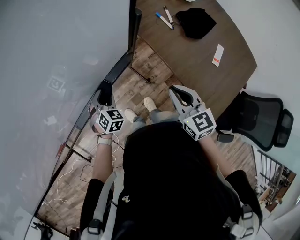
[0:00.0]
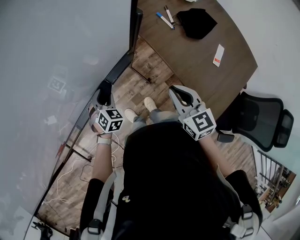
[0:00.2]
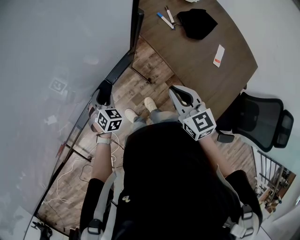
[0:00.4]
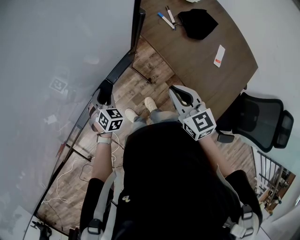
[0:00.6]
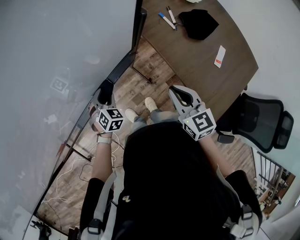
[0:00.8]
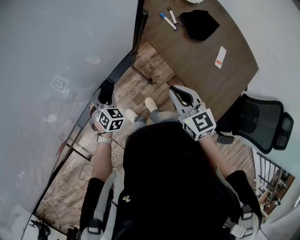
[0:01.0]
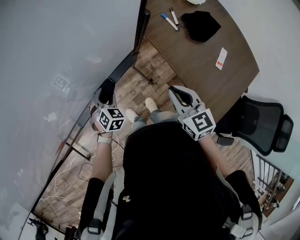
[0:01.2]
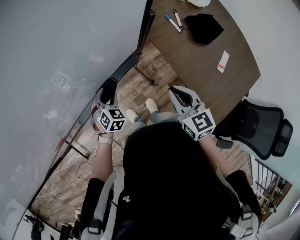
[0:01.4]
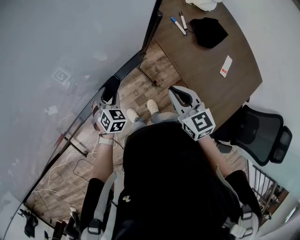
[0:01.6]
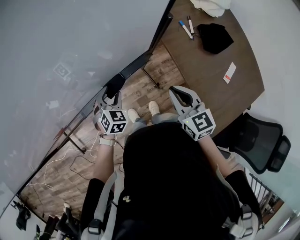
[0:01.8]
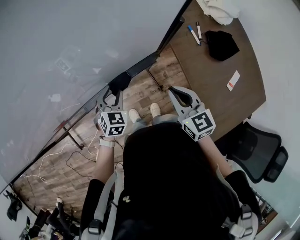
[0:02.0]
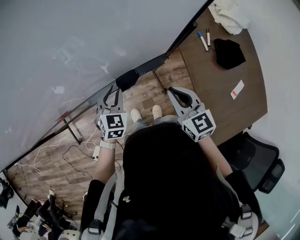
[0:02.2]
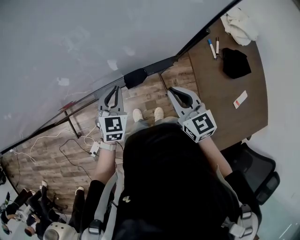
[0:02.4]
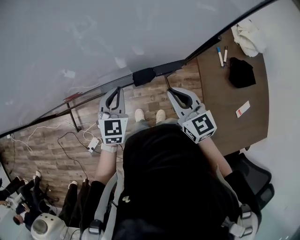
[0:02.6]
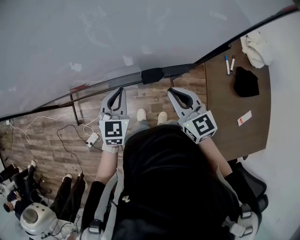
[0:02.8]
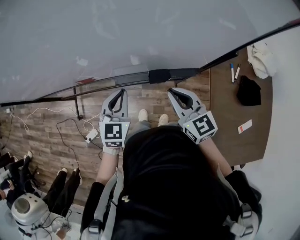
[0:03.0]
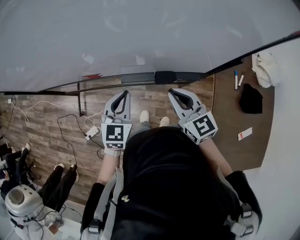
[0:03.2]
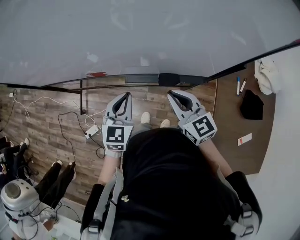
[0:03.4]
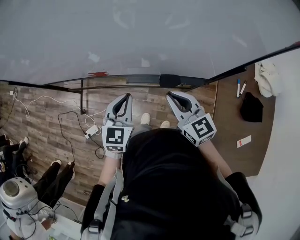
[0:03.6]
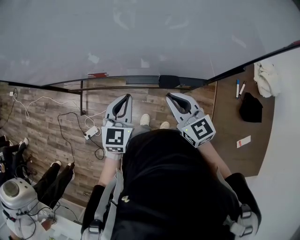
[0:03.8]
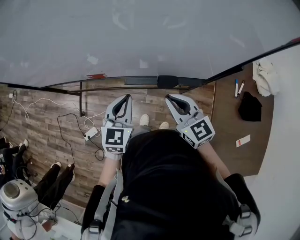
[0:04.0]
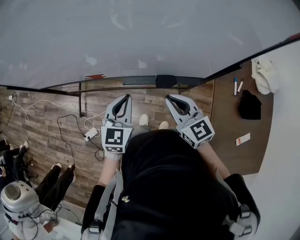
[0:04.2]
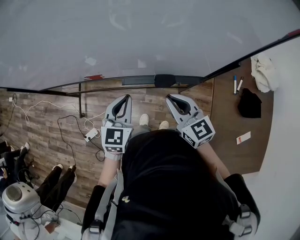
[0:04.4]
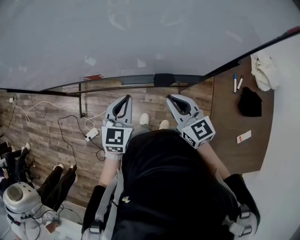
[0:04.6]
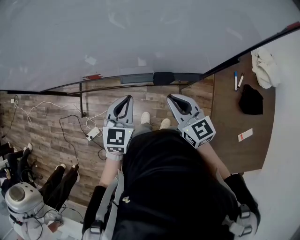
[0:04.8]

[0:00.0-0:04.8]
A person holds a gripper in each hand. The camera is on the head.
0:00.0 to 0:01.6: The grippers stay close to where they were, moving slightly.
0:01.6 to 0:03.2: The right gripper changes place by roughly 20 cm, and turns by approximately 40 degrees. Meanwhile the left gripper moves roughly 25 cm, changes its angle by some 50 degrees, and closes.
0:03.2 to 0:04.8: The grippers make only small movements.

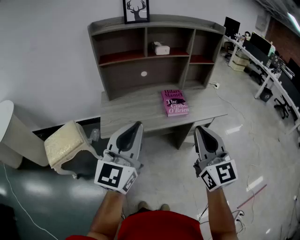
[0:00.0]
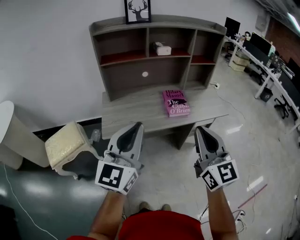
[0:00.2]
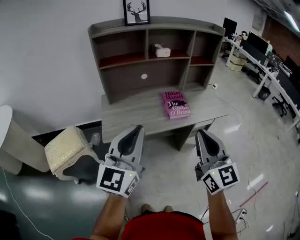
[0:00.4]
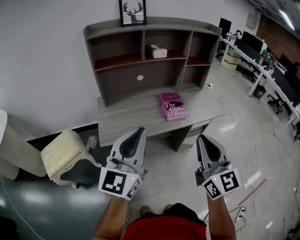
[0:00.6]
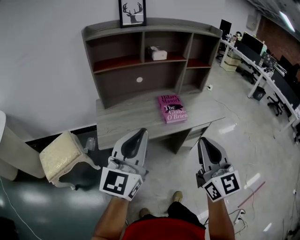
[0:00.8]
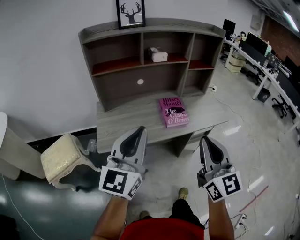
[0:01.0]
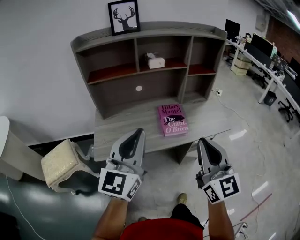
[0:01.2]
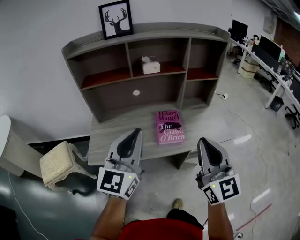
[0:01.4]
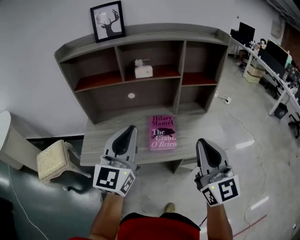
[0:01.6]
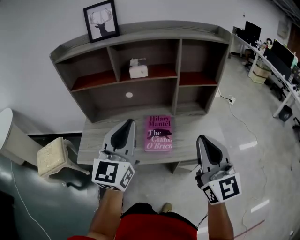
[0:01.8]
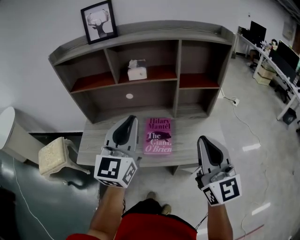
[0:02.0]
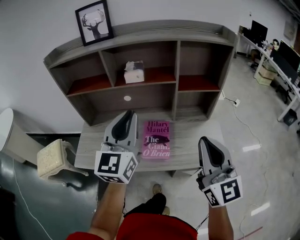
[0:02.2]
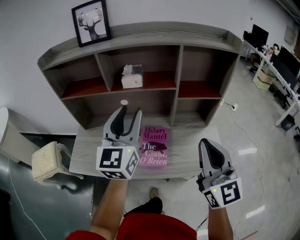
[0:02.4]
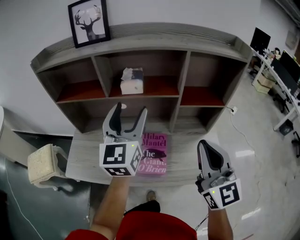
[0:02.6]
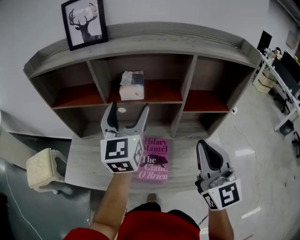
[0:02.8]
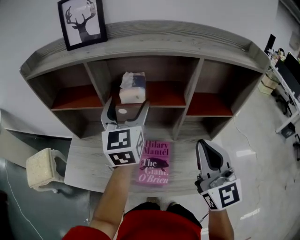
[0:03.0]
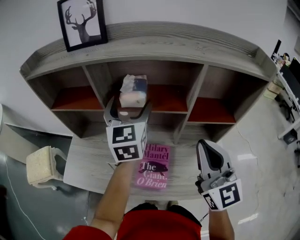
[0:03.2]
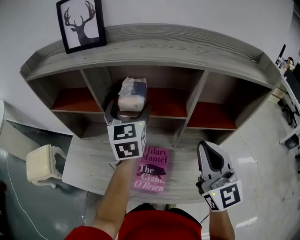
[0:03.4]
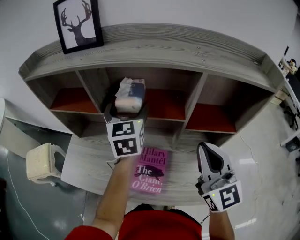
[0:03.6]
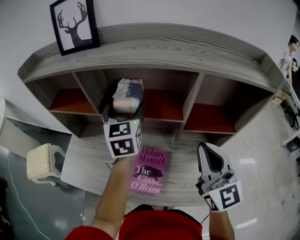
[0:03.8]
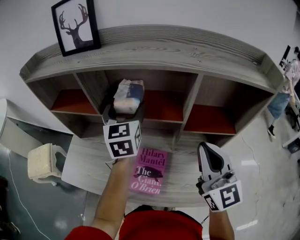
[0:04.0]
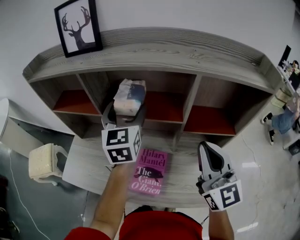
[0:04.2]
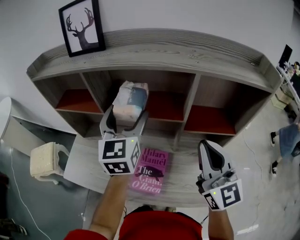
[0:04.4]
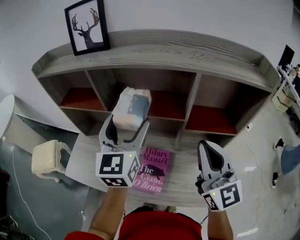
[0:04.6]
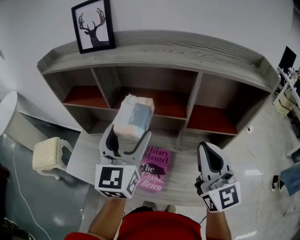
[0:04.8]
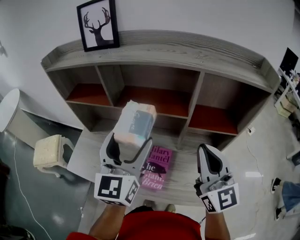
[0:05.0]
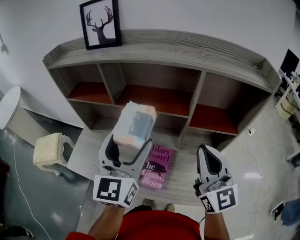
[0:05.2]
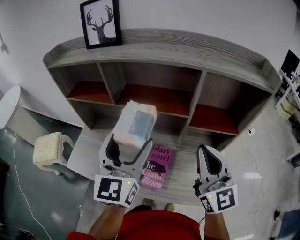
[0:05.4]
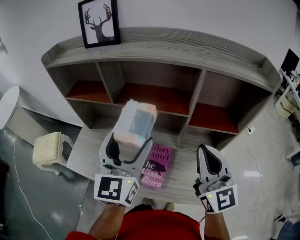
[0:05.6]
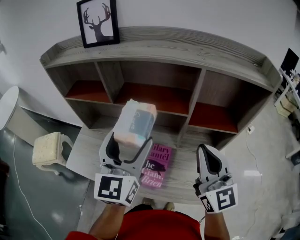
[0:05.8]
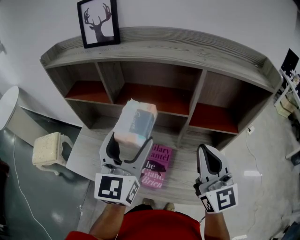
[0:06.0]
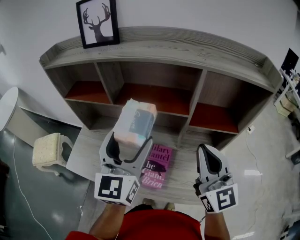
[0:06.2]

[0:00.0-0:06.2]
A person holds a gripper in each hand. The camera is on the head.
0:00.0 to 0:01.6: The two grippers go about 25 cm forward and to the right.
0:01.6 to 0:03.2: Both grippers move forward, some 30 cm. The left gripper swivels approximately 30 degrees, and opens up.
0:03.2 to 0:04.6: The left gripper goes approximately 5 cm backward.
0:04.6 to 0:06.2: The left gripper goes roughly 10 cm backward.

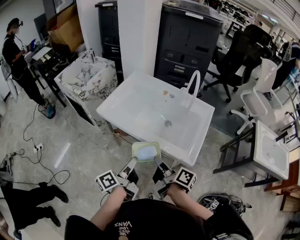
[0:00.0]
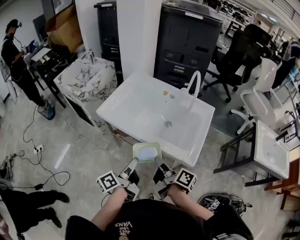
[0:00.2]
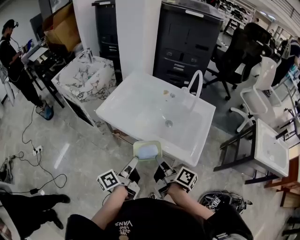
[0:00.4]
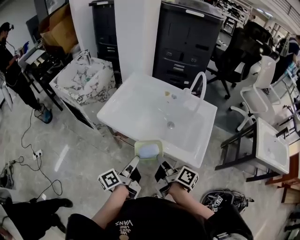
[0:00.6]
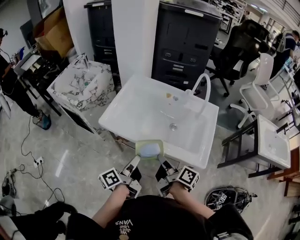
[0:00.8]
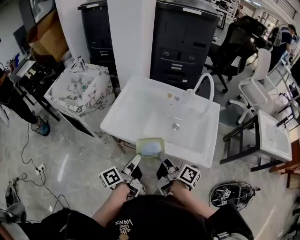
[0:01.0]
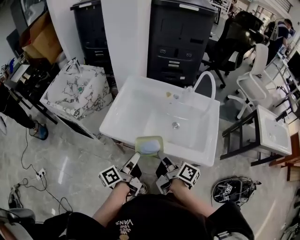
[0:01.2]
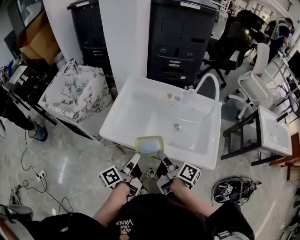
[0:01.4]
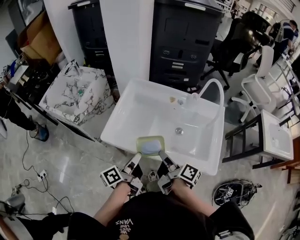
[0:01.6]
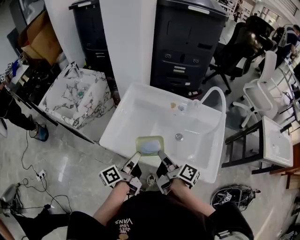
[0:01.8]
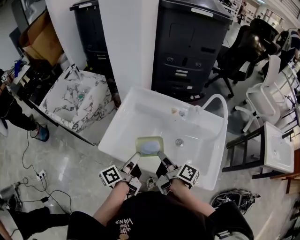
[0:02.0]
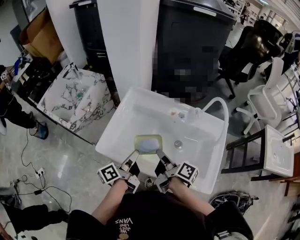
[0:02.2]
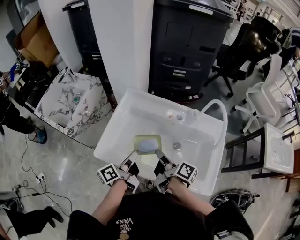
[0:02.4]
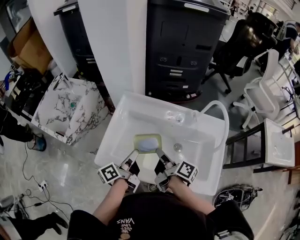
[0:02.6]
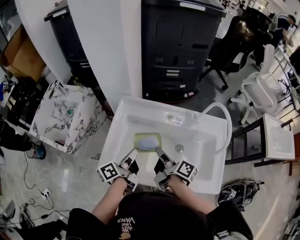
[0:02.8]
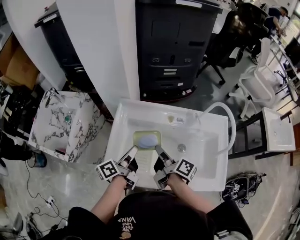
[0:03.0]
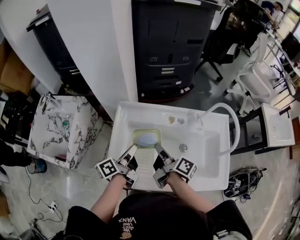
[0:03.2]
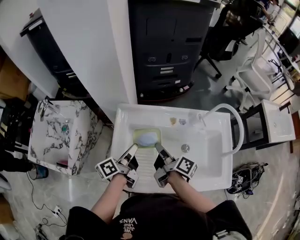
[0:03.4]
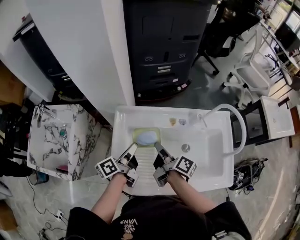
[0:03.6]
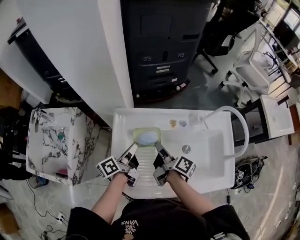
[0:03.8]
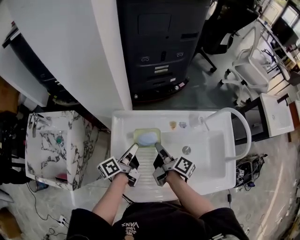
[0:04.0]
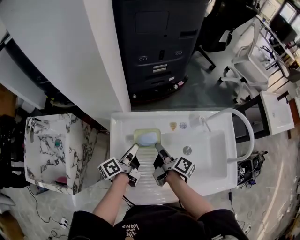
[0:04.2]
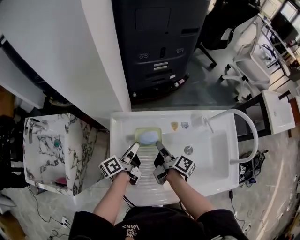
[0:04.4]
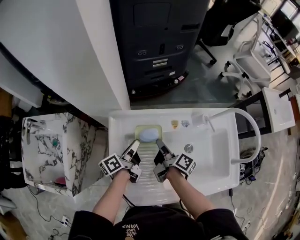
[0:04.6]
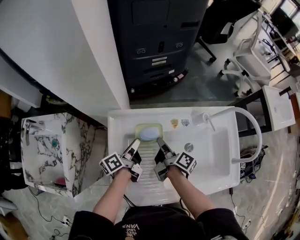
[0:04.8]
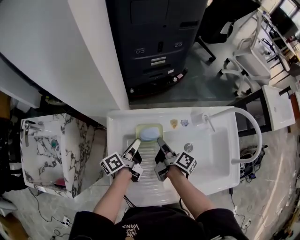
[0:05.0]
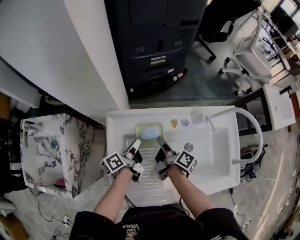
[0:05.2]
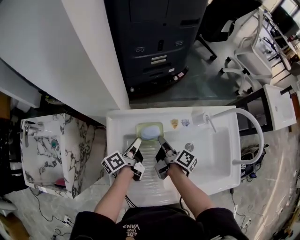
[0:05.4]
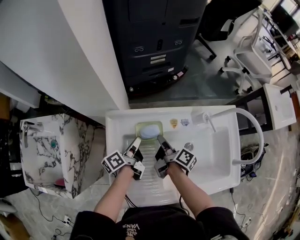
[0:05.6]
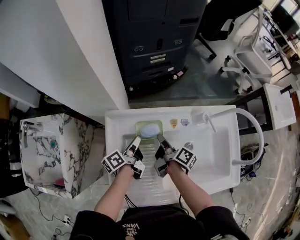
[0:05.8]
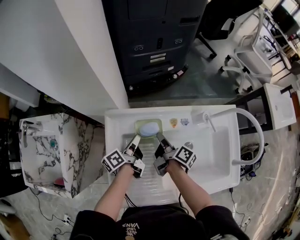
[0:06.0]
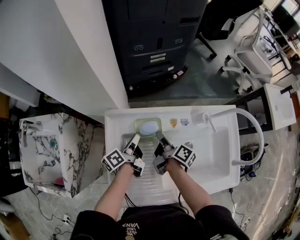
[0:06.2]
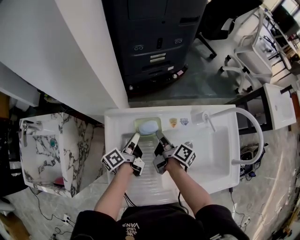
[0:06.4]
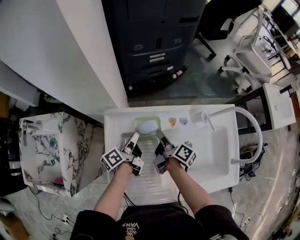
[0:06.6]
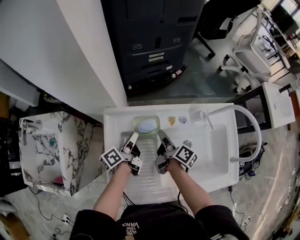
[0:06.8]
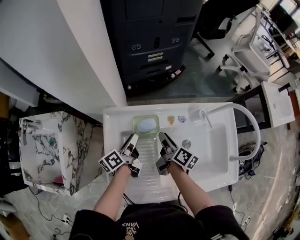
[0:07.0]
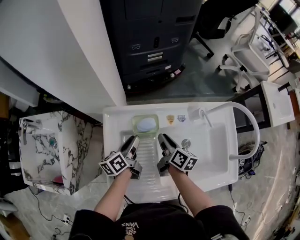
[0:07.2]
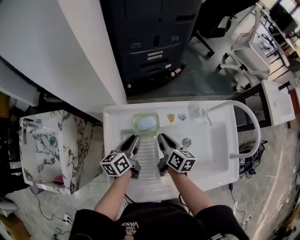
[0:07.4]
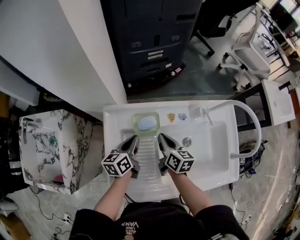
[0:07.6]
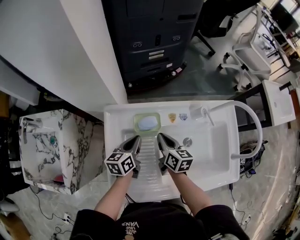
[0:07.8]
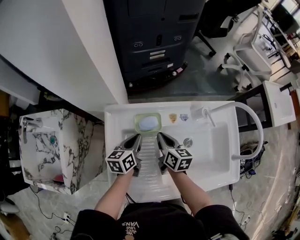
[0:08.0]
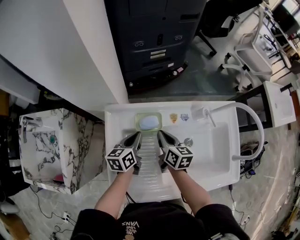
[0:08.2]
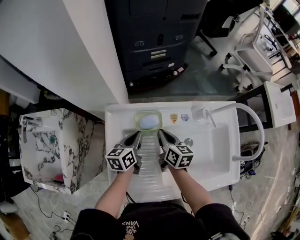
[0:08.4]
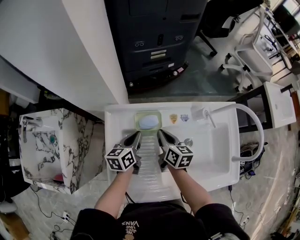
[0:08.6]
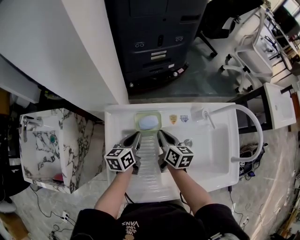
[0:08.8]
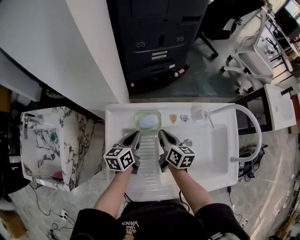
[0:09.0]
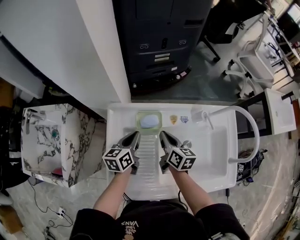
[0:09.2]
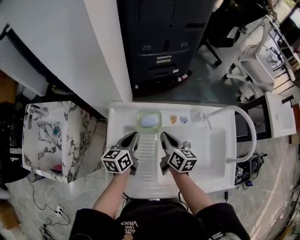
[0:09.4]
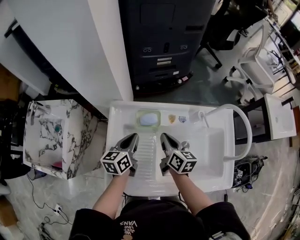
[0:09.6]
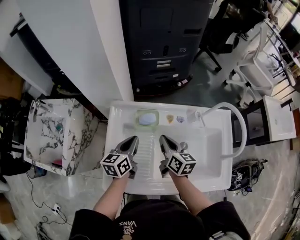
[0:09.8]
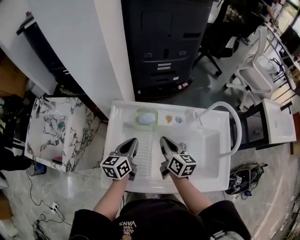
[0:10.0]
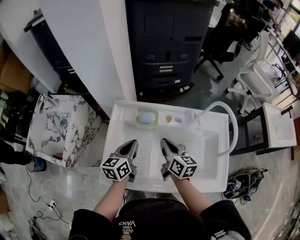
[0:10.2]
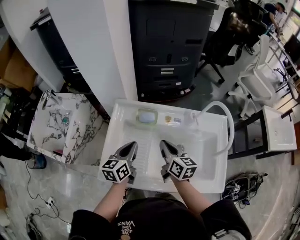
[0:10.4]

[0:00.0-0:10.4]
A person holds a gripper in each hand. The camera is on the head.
0:00.0 to 0:01.4: The grippers both shift forward and to the left by roughly 15 cm.
0:01.4 to 0:03.0: The two grippers go roughly 25 cm forward.
0:03.0 to 0:04.4: The grippers both shift forward and downward by approximately 15 cm.
0:04.4 to 0:06.0: The right gripper shifts by about 5 cm.
0:06.0 to 0:07.4: The right gripper swivels approximately 40 degrees. The left gripper changes its angle by about 30 degrees.
0:07.4 to 0:09.0: The left gripper closes its fingers.
0:09.0 to 0:10.4: Both grippers move backward and upward, about 15 cm.

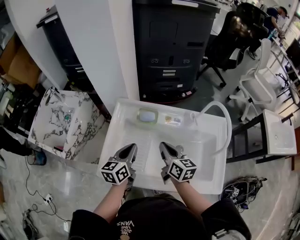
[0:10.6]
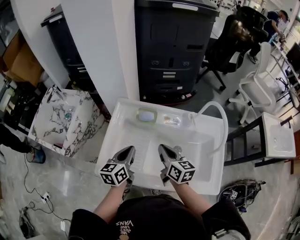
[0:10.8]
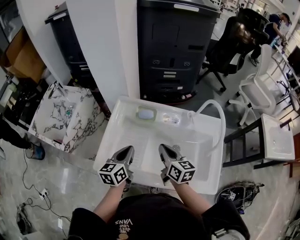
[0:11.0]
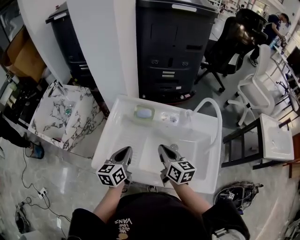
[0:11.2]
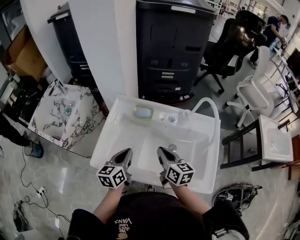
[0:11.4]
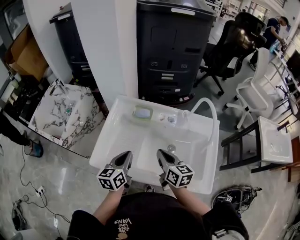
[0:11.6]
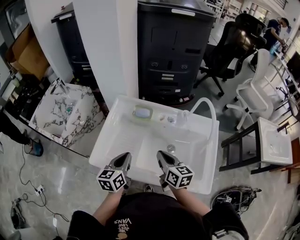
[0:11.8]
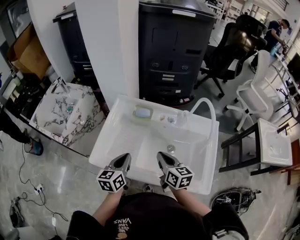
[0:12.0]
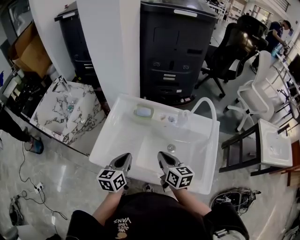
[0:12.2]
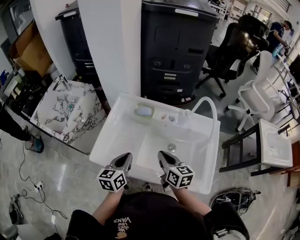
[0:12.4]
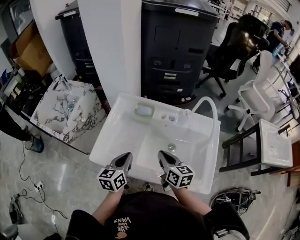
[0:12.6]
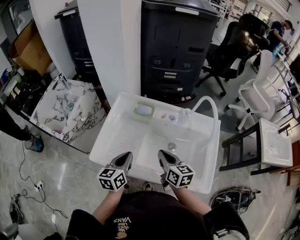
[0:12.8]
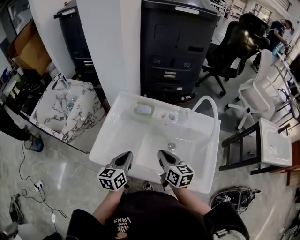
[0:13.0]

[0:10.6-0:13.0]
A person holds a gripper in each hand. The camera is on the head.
0:10.6 to 0:11.8: Both grippers travel together backward, some 10 cm.
0:11.8 to 0:13.0: Neither gripper changes place.
